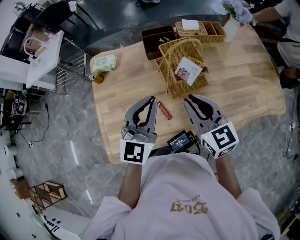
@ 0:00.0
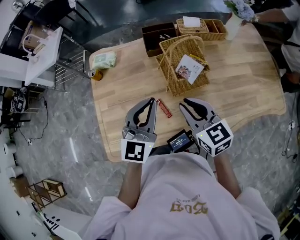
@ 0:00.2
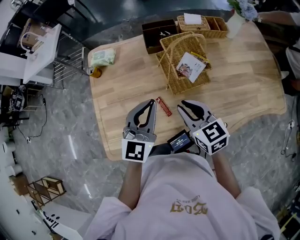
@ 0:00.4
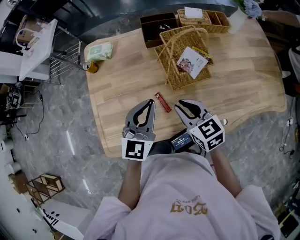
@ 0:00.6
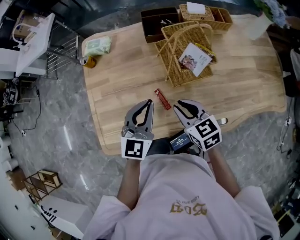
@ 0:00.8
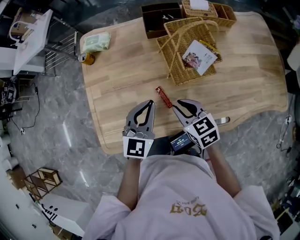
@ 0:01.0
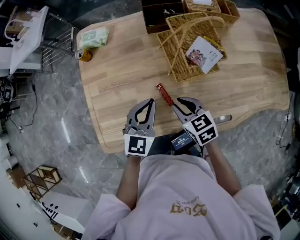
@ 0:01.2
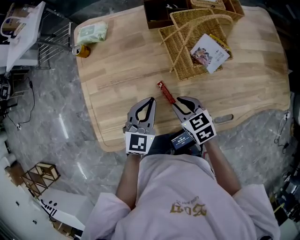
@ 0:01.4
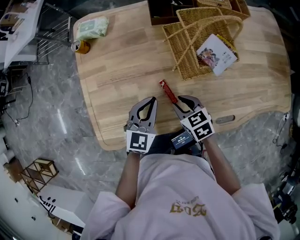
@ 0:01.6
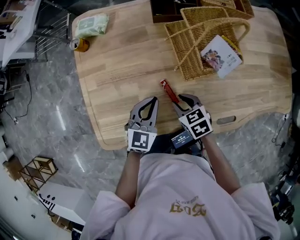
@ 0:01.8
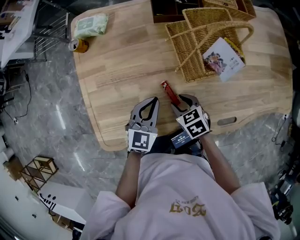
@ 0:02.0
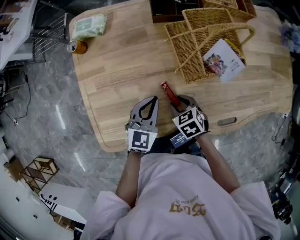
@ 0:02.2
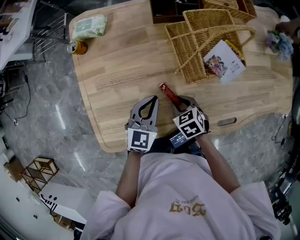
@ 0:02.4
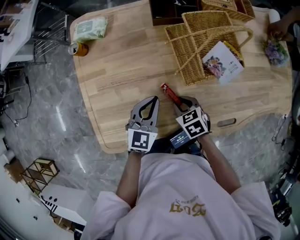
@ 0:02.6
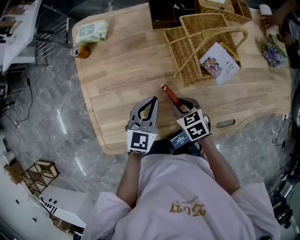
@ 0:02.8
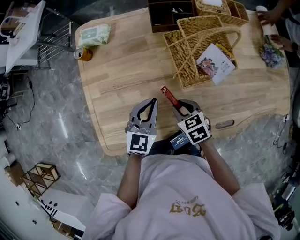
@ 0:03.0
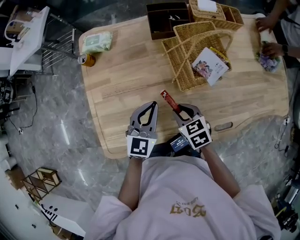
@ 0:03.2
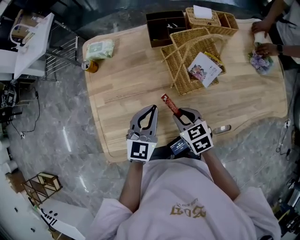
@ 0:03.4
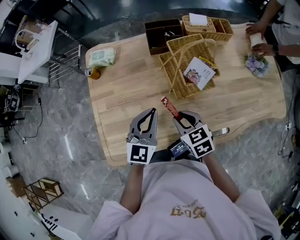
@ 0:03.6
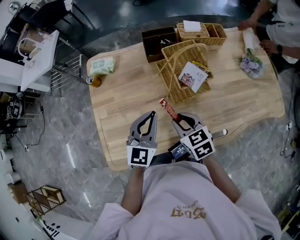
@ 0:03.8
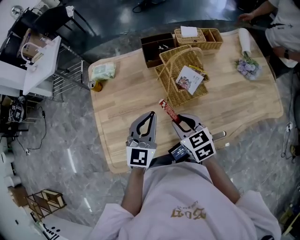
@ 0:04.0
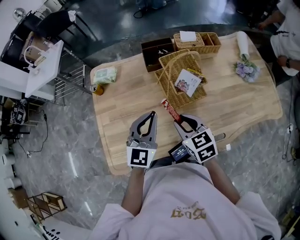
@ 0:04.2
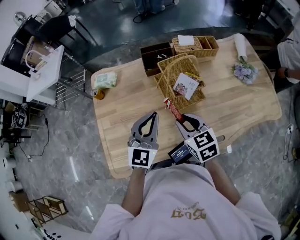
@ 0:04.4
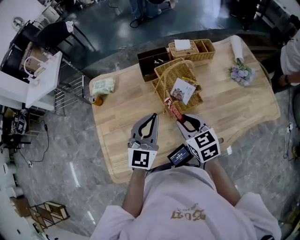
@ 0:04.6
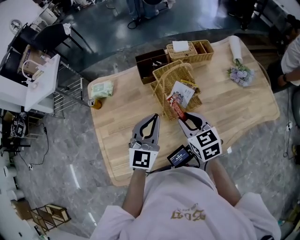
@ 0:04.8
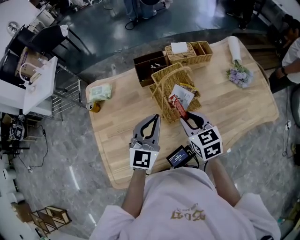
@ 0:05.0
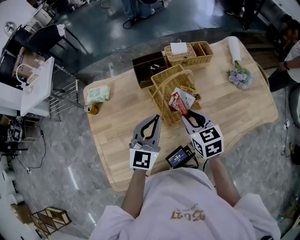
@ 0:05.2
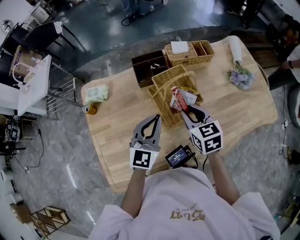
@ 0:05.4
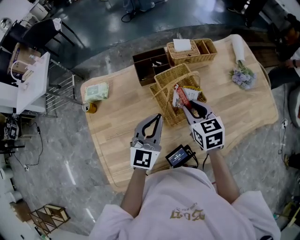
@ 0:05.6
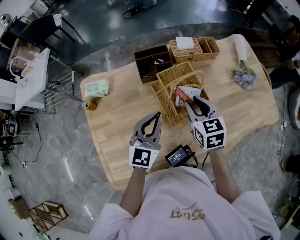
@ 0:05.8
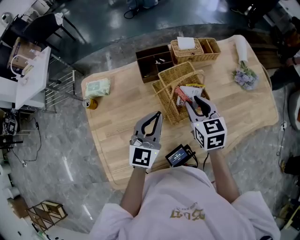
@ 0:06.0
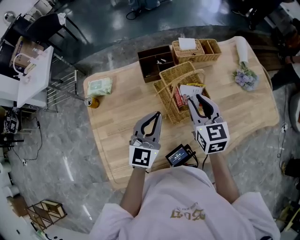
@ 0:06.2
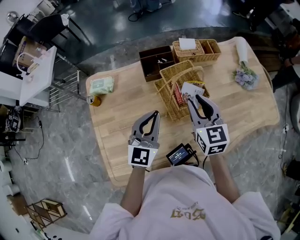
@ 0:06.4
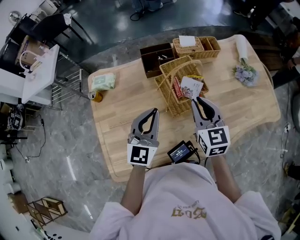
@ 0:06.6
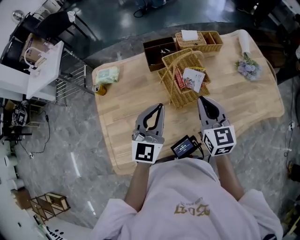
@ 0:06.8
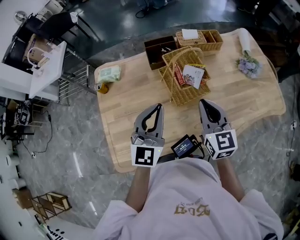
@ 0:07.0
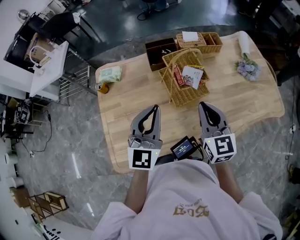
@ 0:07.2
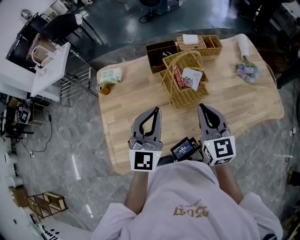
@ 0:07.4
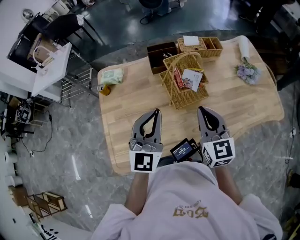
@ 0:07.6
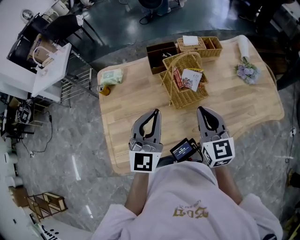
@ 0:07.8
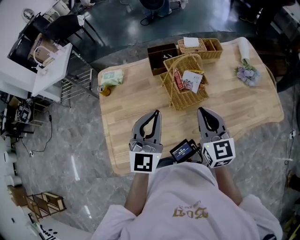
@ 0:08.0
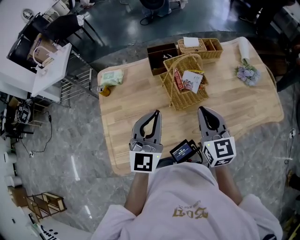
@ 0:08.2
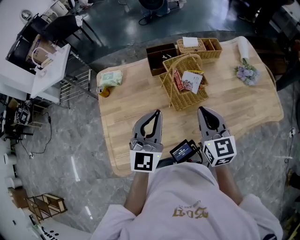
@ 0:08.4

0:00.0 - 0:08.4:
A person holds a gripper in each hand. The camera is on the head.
0:00.0 - 0:01.4: Both grippers travel together downward, approximately 20 cm. The right gripper tilts its fingers some 30 degrees downward, while the left gripper rotates some 20 degrees.
0:01.4 - 0:02.8: The right gripper moves downward, some 5 cm.
0:02.8 - 0:04.2: The grippers both shift upward by about 20 cm. The right gripper changes its angle by some 20 degrees.
0:04.2 - 0:05.6: The right gripper shifts approximately 15 cm forward and to the right. Meanwhile the left gripper goes roughly 10 cm forward.
0:05.6 - 0:07.0: The grippers both shift backward and upward by approximately 15 cm. The right gripper changes its angle by roughly 20 degrees, and closes its fingers.
0:07.0 - 0:08.4: The grippers move only a little.

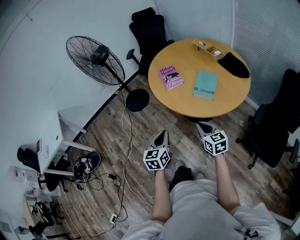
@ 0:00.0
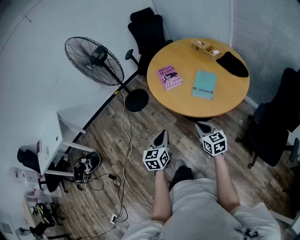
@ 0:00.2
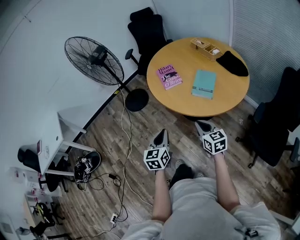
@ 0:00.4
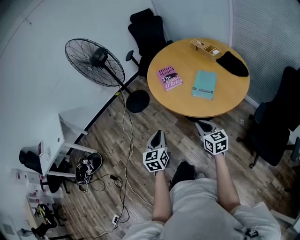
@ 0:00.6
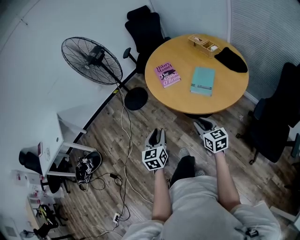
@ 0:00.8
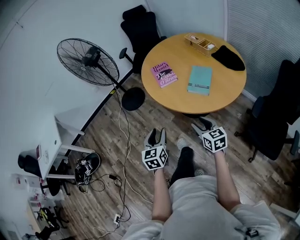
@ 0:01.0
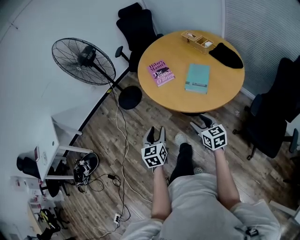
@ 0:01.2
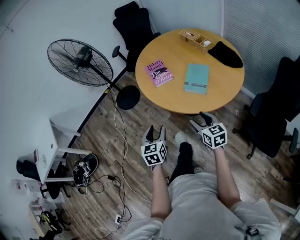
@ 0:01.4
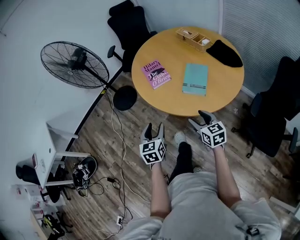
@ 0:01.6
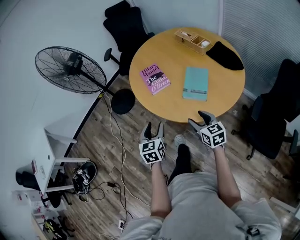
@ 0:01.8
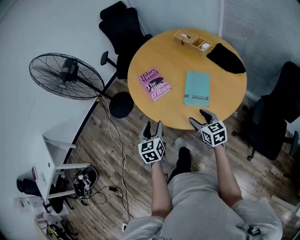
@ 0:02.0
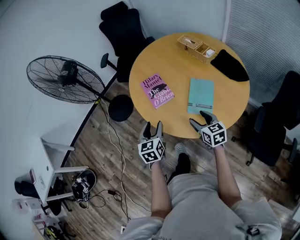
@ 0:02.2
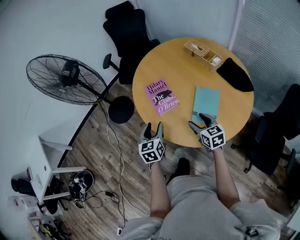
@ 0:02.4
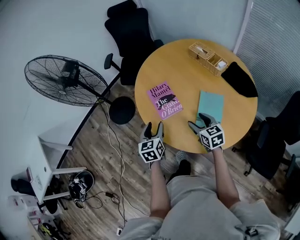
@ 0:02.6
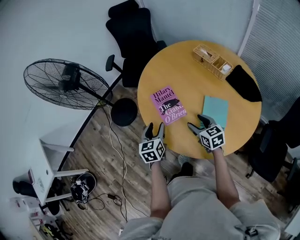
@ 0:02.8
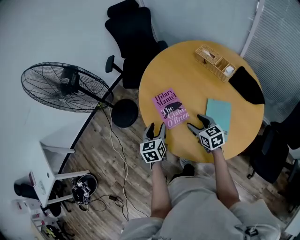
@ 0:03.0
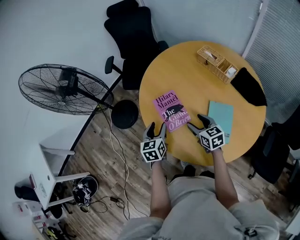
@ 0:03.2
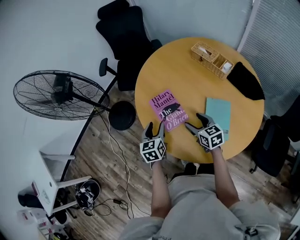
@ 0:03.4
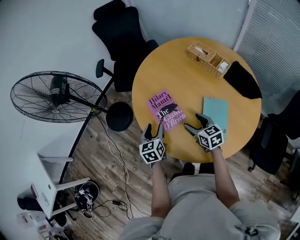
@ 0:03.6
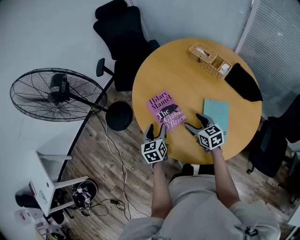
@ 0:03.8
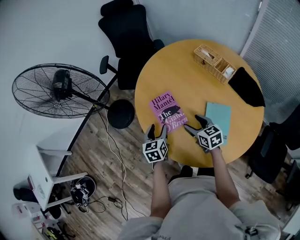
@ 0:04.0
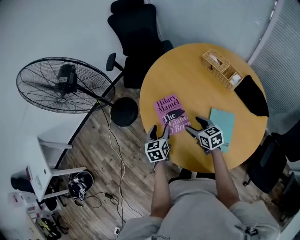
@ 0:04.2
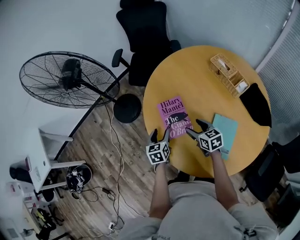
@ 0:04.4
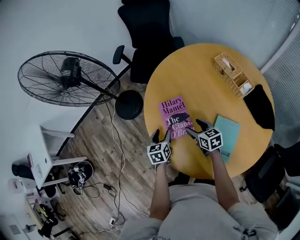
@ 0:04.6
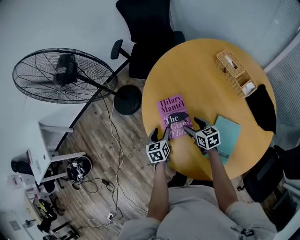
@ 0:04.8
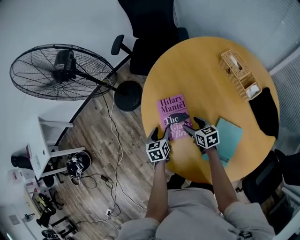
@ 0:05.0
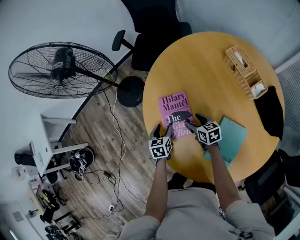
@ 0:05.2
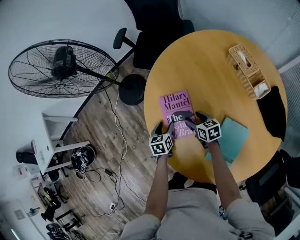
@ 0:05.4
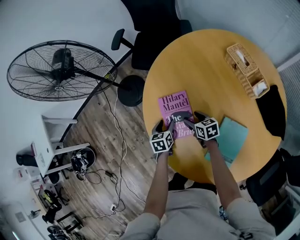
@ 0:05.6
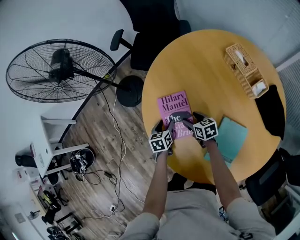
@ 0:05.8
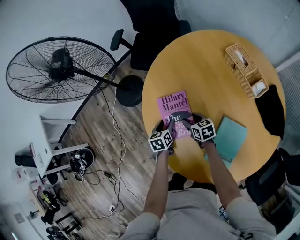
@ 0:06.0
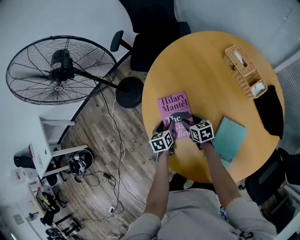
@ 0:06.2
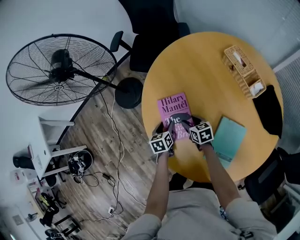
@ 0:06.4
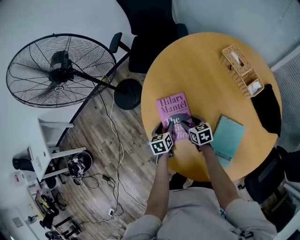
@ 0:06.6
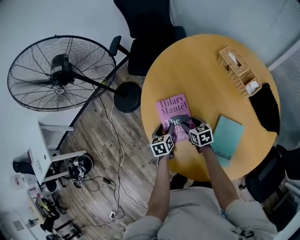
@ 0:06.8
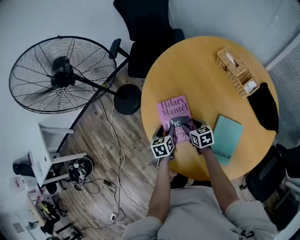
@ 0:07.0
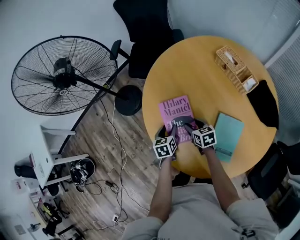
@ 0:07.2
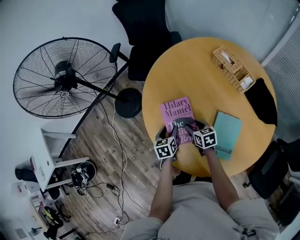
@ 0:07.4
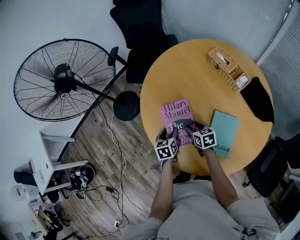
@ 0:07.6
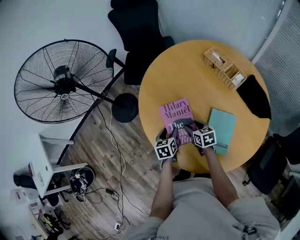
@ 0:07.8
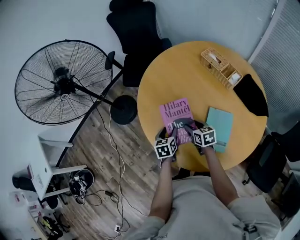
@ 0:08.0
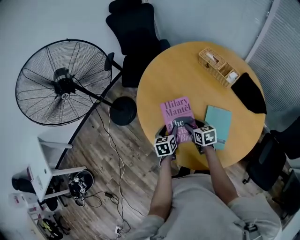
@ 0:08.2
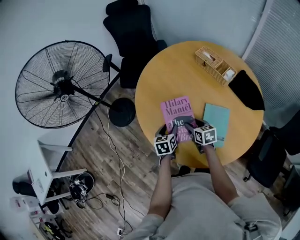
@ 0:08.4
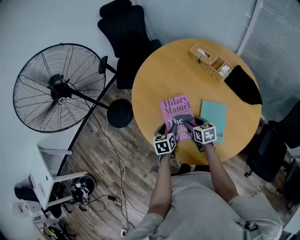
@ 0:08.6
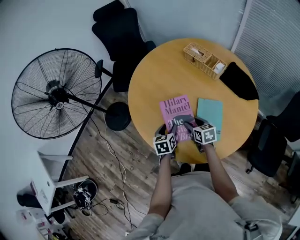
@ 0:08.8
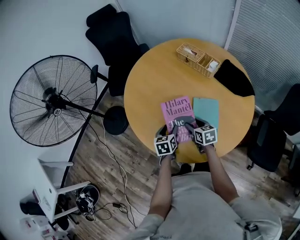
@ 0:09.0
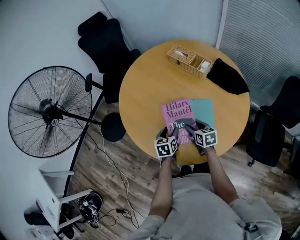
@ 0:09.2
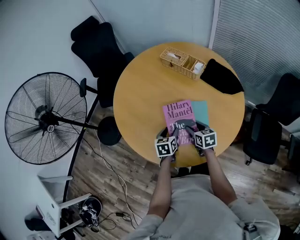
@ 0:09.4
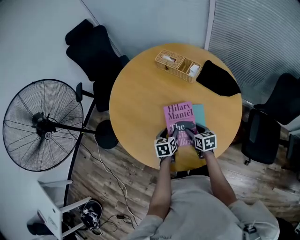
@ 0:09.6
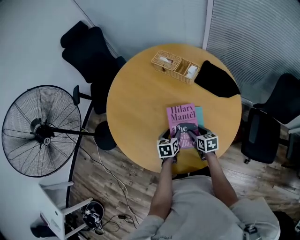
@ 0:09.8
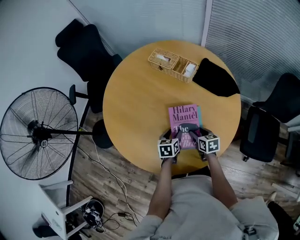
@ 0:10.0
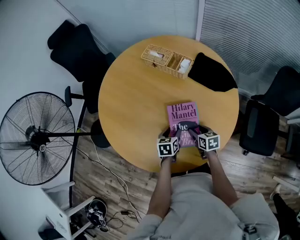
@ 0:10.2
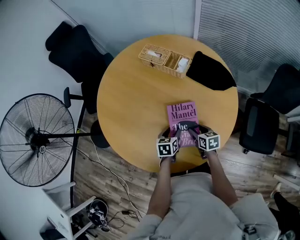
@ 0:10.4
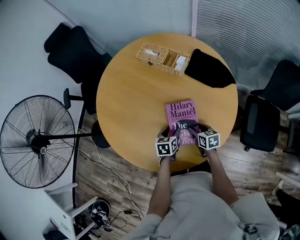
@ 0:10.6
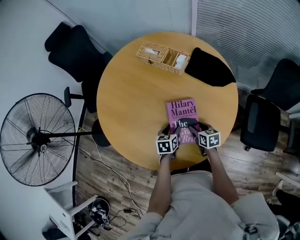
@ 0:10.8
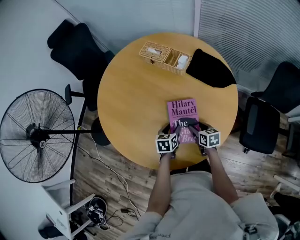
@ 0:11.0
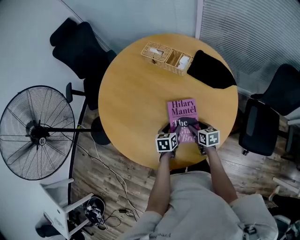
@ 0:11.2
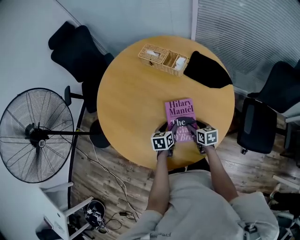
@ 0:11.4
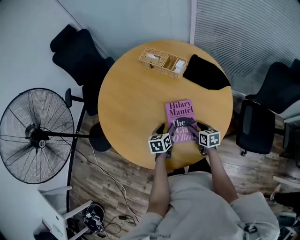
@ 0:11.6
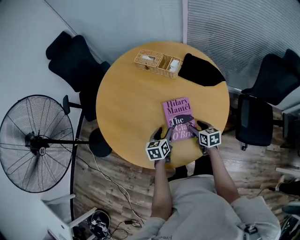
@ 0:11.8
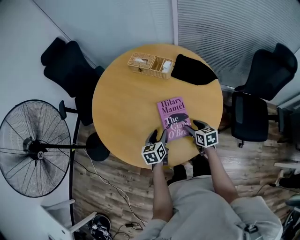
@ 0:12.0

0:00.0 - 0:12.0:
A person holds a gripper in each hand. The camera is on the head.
0:00.0 - 0:01.6: The two grippers go about 10 cm forward. The left gripper opens up, while the right gripper opens.
0:01.6 - 0:03.0: Both grippers move forward, approximately 30 cm.
0:03.0 - 0:04.4: The right gripper is displaced forward by roughly 5 cm. Meanwhile the left gripper heads downward, covering roughly 10 cm.
0:04.4 - 0:06.0: The left gripper shifts some 10 cm downward; the right gripper is displaced downward and forward by roughly 15 cm.
0:06.0 - 0:07.6: The right gripper shifts some 10 cm backward and upward; the left gripper travels upward and backward by about 10 cm.
0:07.6 - 0:09.0: The right gripper is displaced to the right and backward by about 10 cm. Meanwhile the left gripper goes about 10 cm to the right.
0:09.0 - 0:10.4: The left gripper moves to the right, roughly 15 cm, and rotates roughly 20 degrees, while the right gripper is displaced to the right and downward by approximately 15 cm.
0:10.4 - 0:12.0: The grippers both shift upward by some 5 cm.

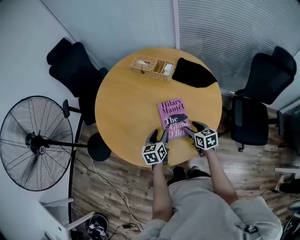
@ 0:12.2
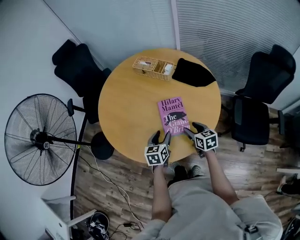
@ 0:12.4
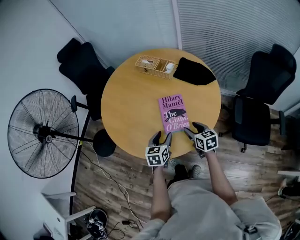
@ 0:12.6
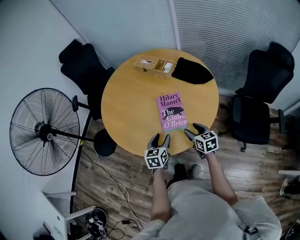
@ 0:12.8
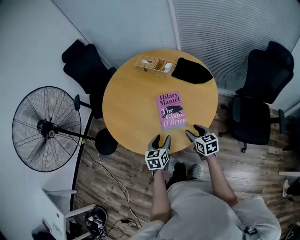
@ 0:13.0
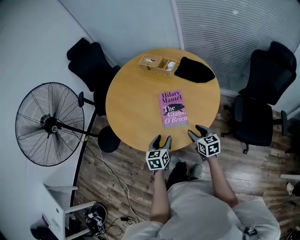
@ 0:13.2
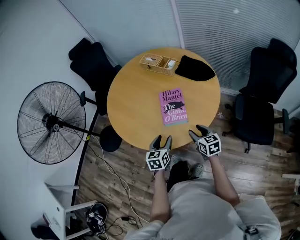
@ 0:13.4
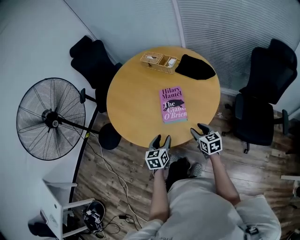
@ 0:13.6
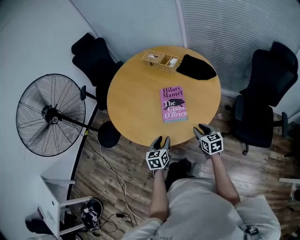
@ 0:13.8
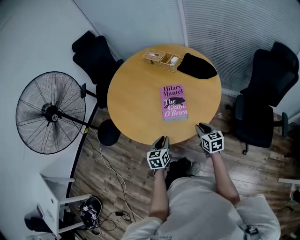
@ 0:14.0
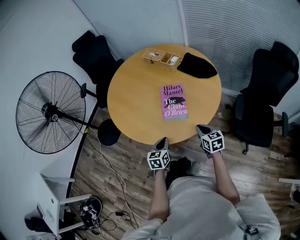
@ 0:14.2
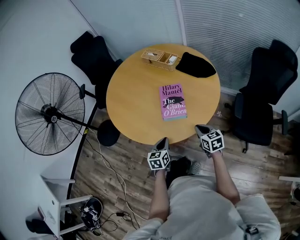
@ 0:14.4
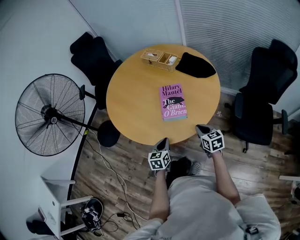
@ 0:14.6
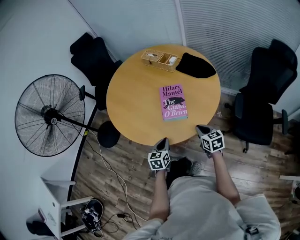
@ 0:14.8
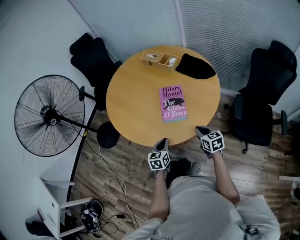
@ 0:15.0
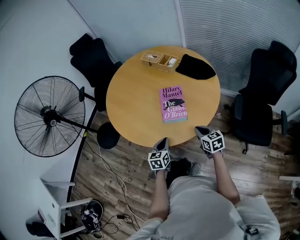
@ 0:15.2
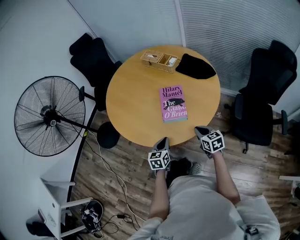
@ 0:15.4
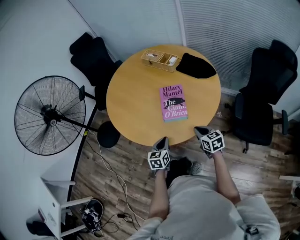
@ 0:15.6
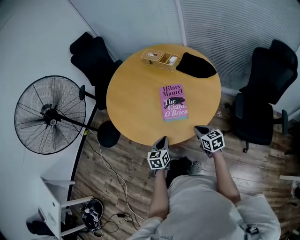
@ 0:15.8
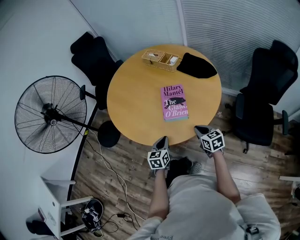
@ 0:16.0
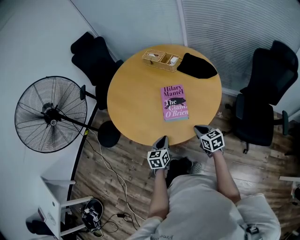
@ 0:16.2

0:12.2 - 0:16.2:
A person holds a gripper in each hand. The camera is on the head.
0:12.2 - 0:13.6: The grippers both shift backward by some 15 cm.
0:13.6 - 0:14.8: The left gripper ends up about 5 cm from where it was, and closes its fingers, while the right gripper closes its fingers.
0:14.8 - 0:16.2: The grippers stay close to where they were, moving slightly.
